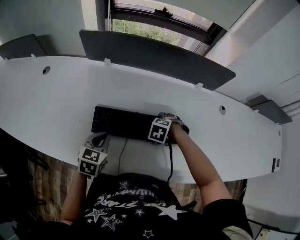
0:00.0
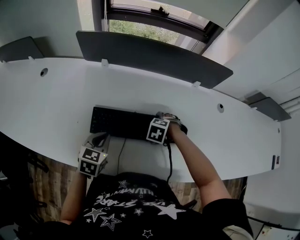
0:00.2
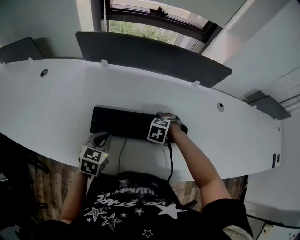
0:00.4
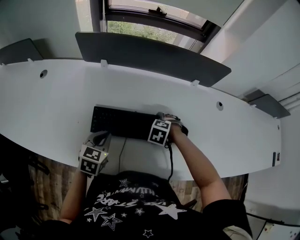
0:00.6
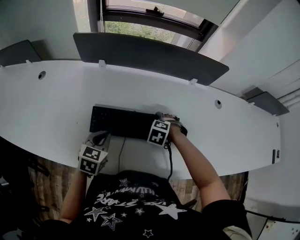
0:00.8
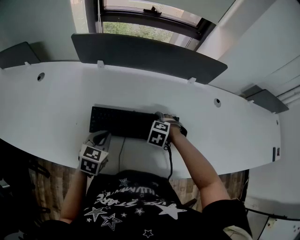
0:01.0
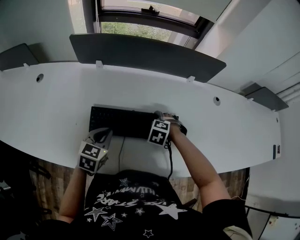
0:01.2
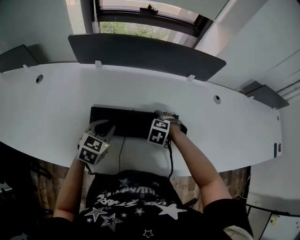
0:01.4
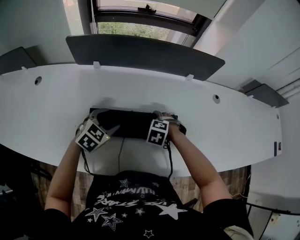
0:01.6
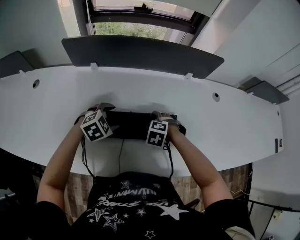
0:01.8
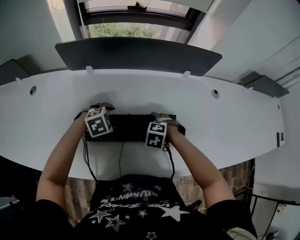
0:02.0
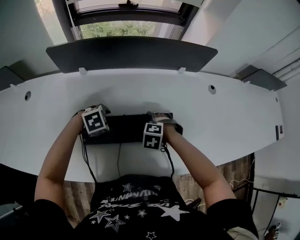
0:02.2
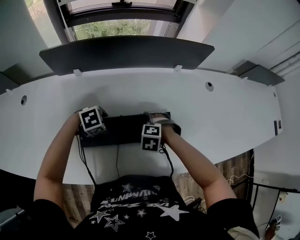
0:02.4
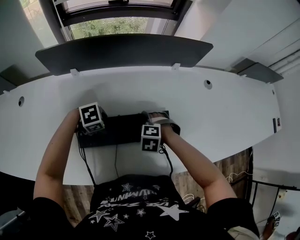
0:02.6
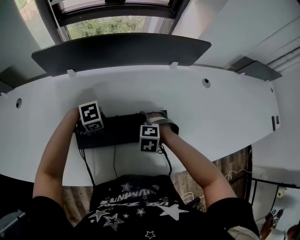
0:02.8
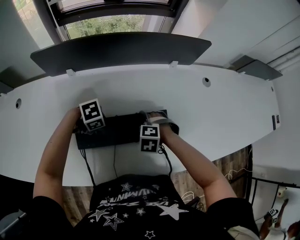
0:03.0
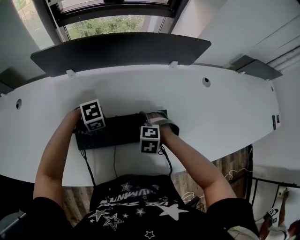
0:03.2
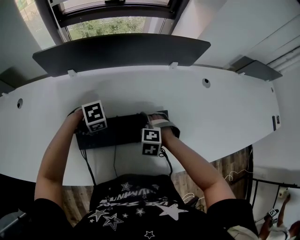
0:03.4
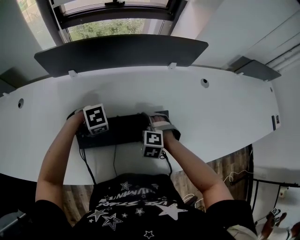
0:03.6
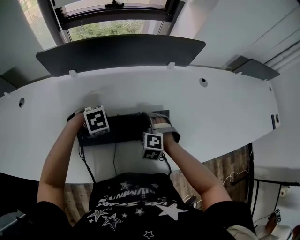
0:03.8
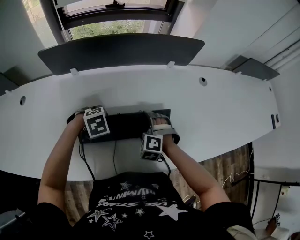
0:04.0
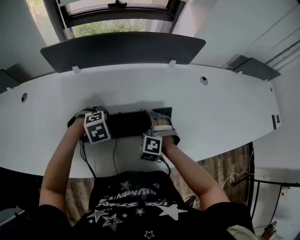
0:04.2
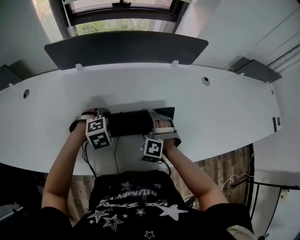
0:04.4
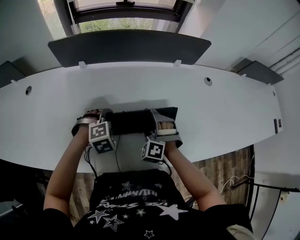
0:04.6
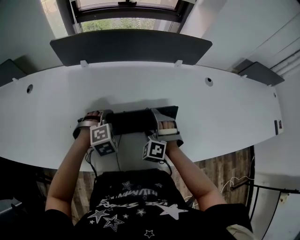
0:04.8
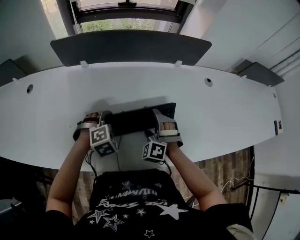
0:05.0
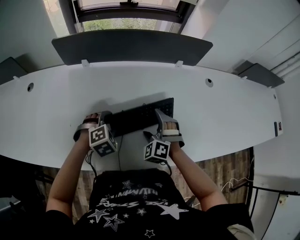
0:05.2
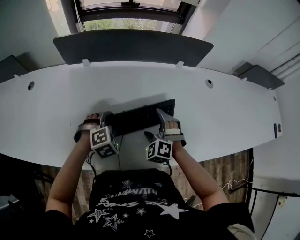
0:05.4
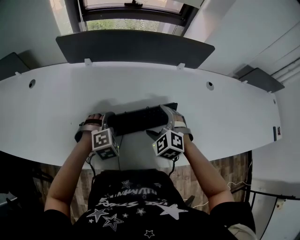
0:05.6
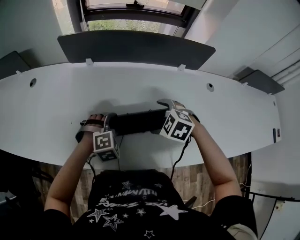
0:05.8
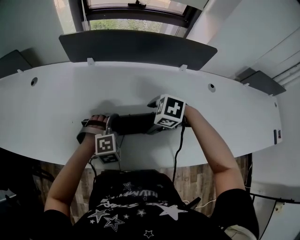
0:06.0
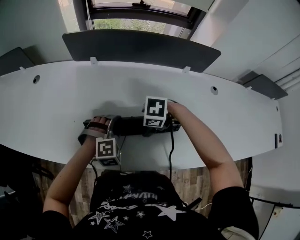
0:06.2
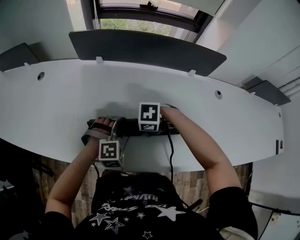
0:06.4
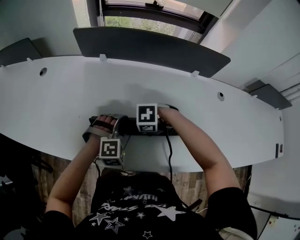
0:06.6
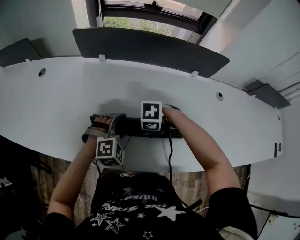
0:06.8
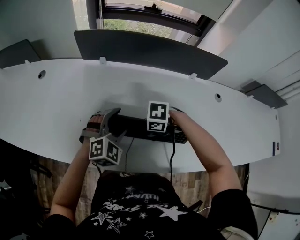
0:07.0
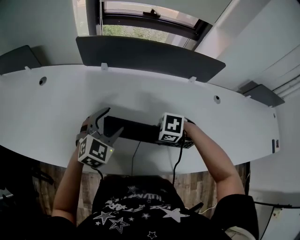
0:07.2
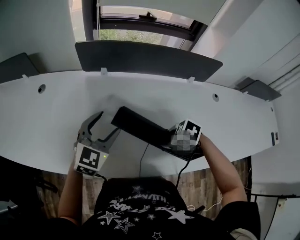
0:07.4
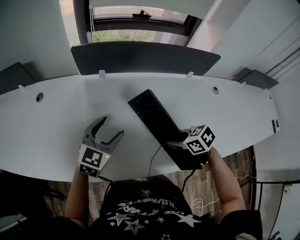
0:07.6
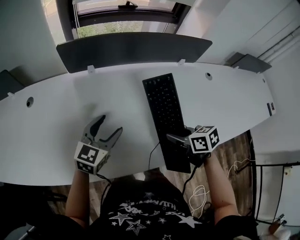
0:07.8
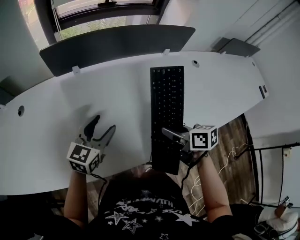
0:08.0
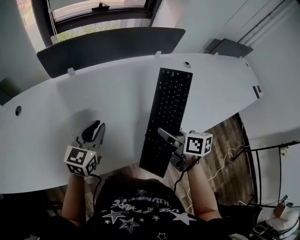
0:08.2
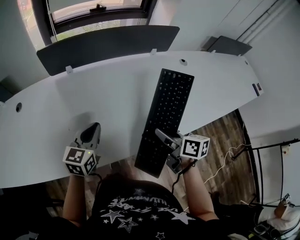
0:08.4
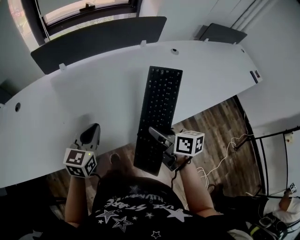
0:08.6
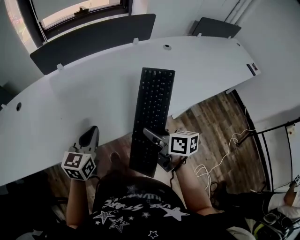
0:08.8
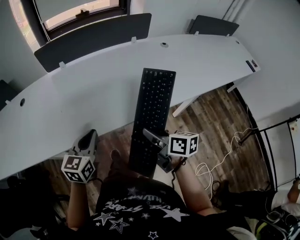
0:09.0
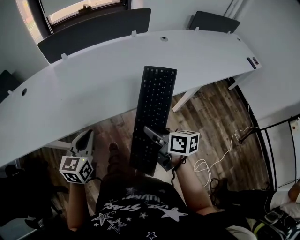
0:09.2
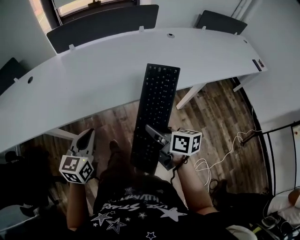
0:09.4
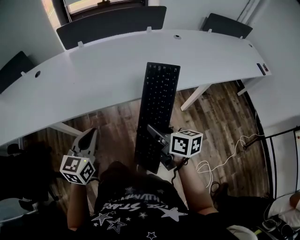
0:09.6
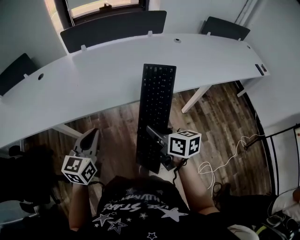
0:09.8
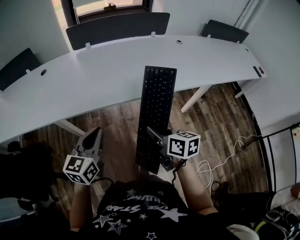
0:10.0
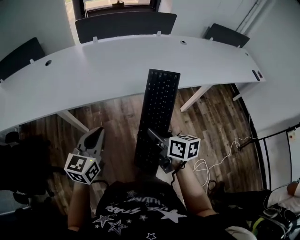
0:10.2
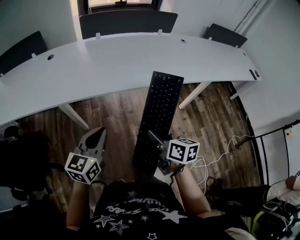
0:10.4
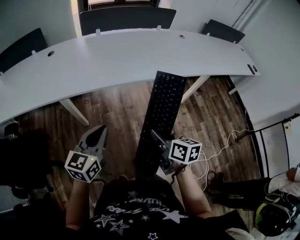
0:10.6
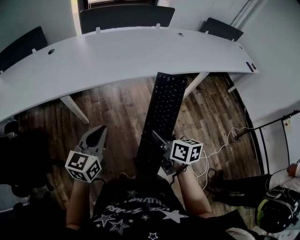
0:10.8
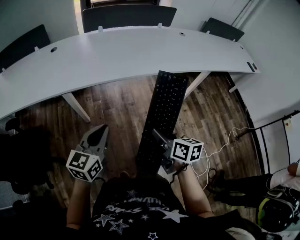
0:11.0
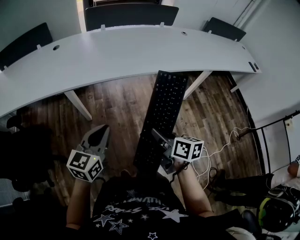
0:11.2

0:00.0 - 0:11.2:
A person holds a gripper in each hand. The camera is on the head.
0:00.0 - 0:01.6: The left gripper ends up approximately 10 cm from where it was, rotates about 30 degrees, and opens up.
0:01.6 - 0:03.2: The left gripper goes roughly 10 cm downward, and changes its angle by approximately 60 degrees.
0:03.2 - 0:04.8: The right gripper tilts its fingers roughly 40 degrees upward, while the left gripper travels upward by some 5 cm, and rotates approximately 50 degrees.
0:04.8 - 0:06.4: The right gripper moves about 10 cm upward and comes back, rotates approximately 70 degrees, and closes its fingers.
0:06.4 - 0:08.0: The left gripper ends up some 15 cm from where it was, and twists roughly 60 degrees counterclockwise, seen from behind. The right gripper is displaced upward by about 10 cm, and tilts its fingers approximately 40 degrees upward.
0:08.0 - 0:09.6: Both grippers travel together backward, roughly 20 cm. The left gripper closes up.
0:09.6 - 0:11.2: The left gripper moves upward, roughly 5 cm.

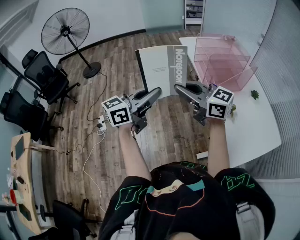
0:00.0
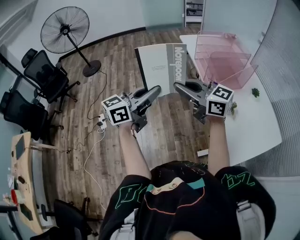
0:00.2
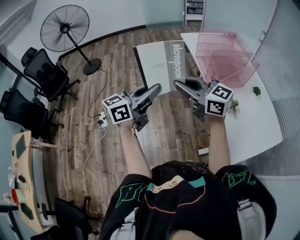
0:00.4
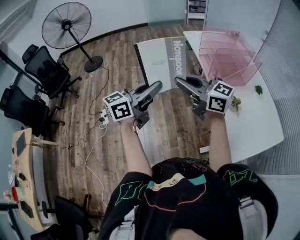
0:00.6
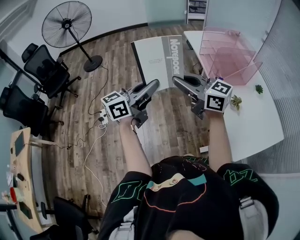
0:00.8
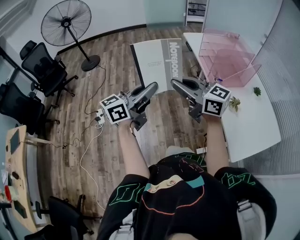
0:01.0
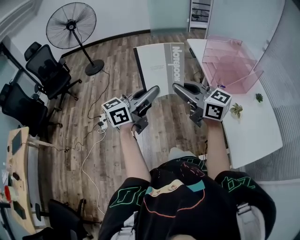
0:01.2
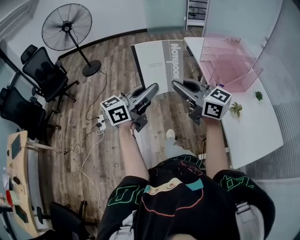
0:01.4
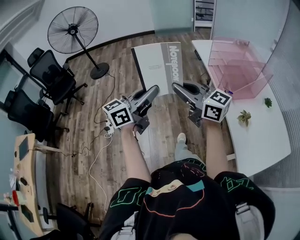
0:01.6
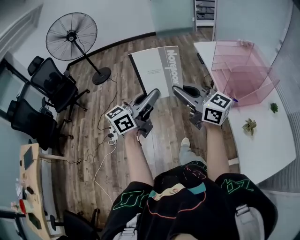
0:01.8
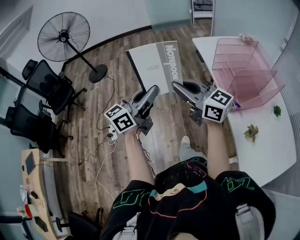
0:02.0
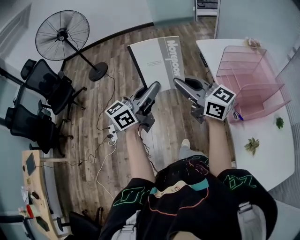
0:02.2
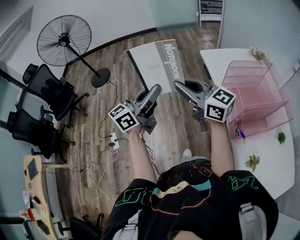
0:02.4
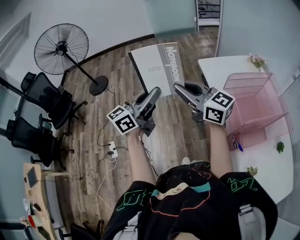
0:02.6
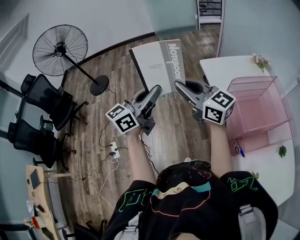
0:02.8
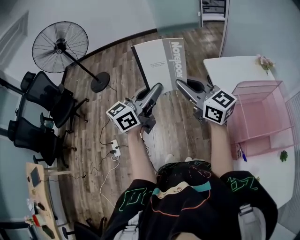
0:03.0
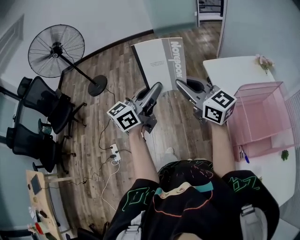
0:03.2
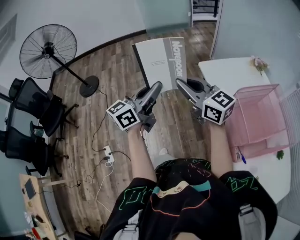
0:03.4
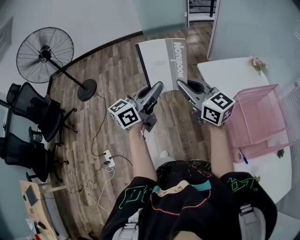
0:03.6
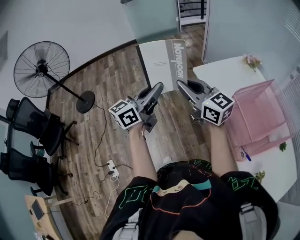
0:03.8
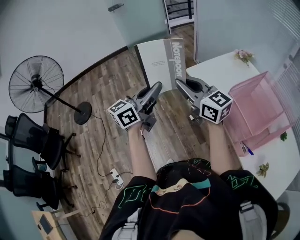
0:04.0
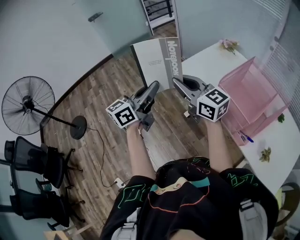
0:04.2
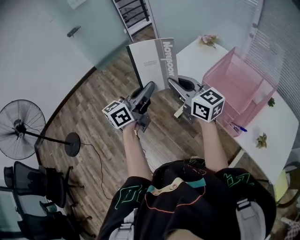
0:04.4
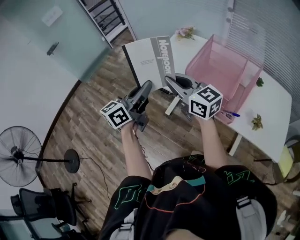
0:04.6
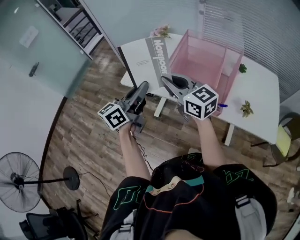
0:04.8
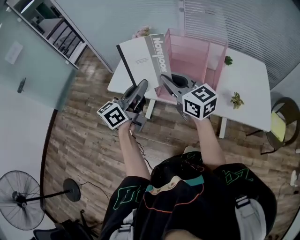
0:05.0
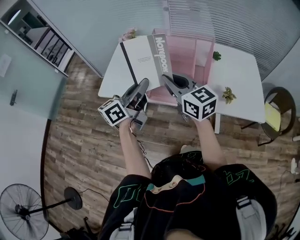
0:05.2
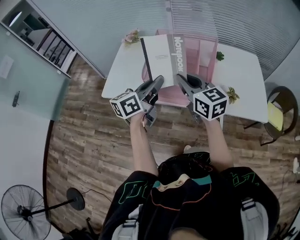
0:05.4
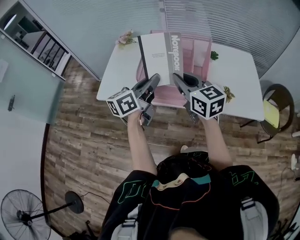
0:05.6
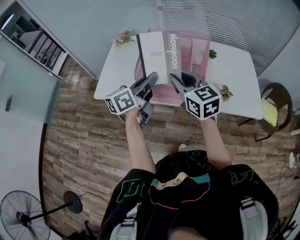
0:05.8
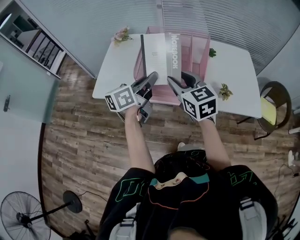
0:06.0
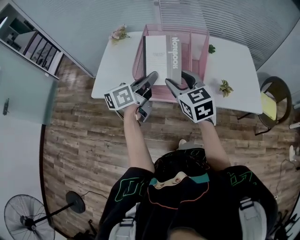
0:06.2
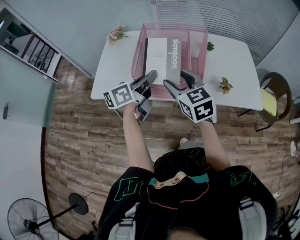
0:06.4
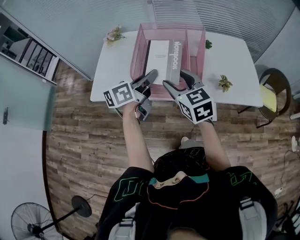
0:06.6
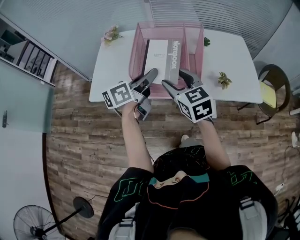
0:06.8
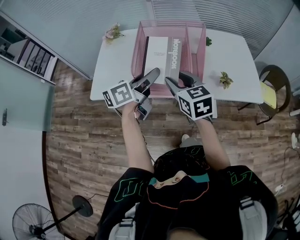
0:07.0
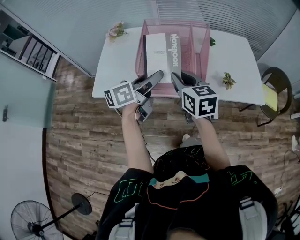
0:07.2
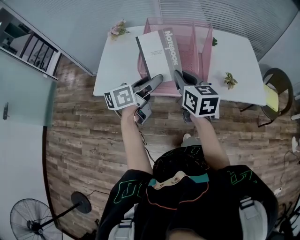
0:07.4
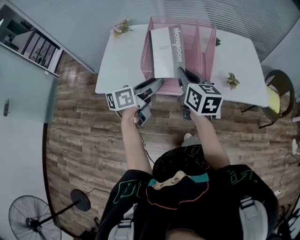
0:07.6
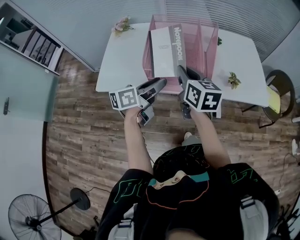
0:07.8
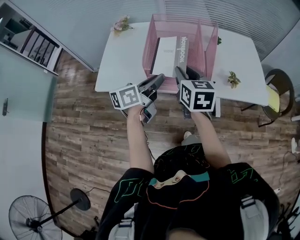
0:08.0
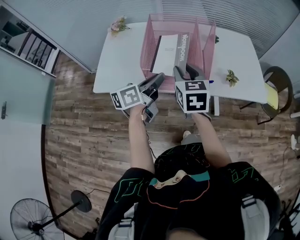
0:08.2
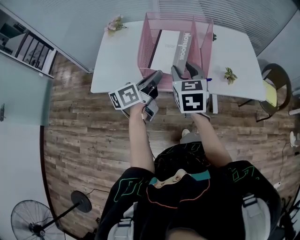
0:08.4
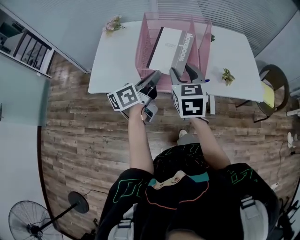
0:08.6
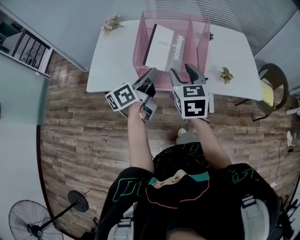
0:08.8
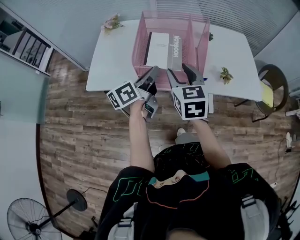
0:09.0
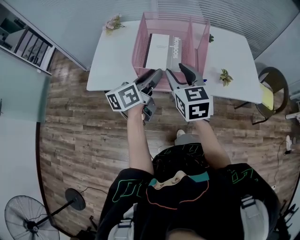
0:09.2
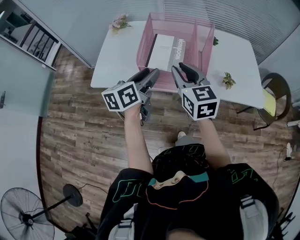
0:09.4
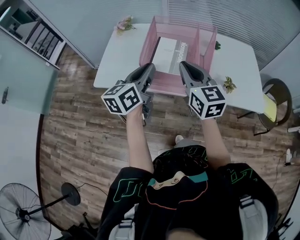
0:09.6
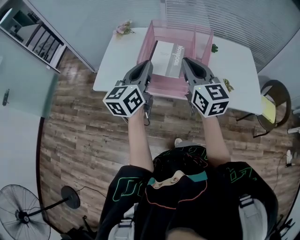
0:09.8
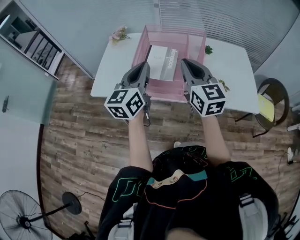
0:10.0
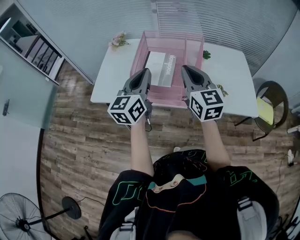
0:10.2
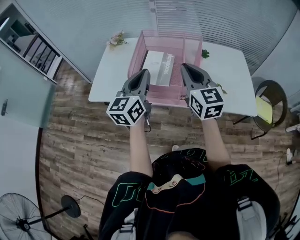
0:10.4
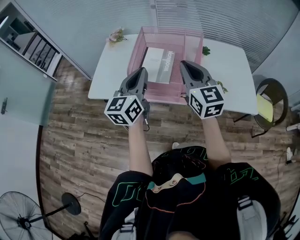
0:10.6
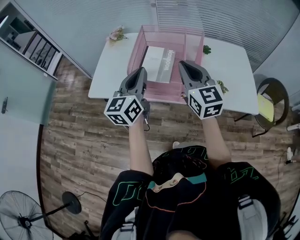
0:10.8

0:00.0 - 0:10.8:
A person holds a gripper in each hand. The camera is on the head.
0:00.0 - 0:01.6: The two grippers go some 10 cm to the left and forward.
0:01.6 - 0:03.0: The pair of grippers is taken forward, roughly 40 cm.
0:03.0 - 0:04.6: The left gripper shifts by some 15 cm, and swivels some 40 degrees; the right gripper moves roughly 15 cm, and turns by roughly 50 degrees.
0:04.6 - 0:06.2: The left gripper changes place by about 25 cm, and swivels some 40 degrees. The right gripper ends up some 20 cm from where it was, changes its angle by approximately 50 degrees, and opens.
0:06.2 - 0:07.8: The right gripper swivels some 30 degrees, and closes up. Meanwhile the left gripper moves downward, roughly 5 cm, and opens.
0:07.8 - 0:09.2: The left gripper closes and opens again, while the right gripper turns by some 20 degrees, and opens its fingers.
0:09.2 - 0:10.8: The left gripper is displaced upward by some 10 cm, turns by roughly 40 degrees, and closes its fingers. The right gripper shifts some 10 cm upward and to the right, and closes up.

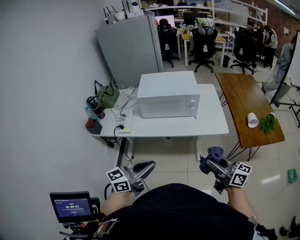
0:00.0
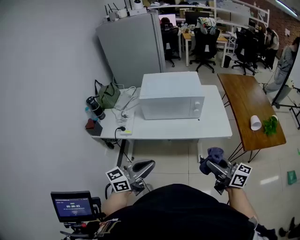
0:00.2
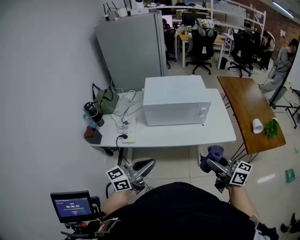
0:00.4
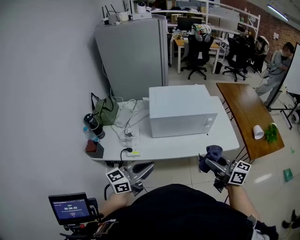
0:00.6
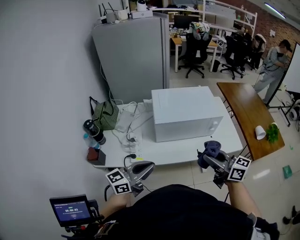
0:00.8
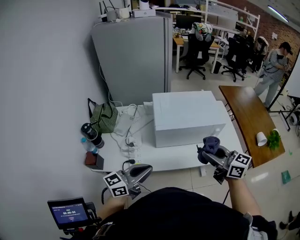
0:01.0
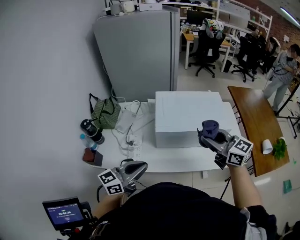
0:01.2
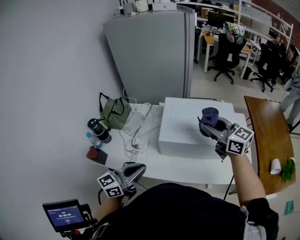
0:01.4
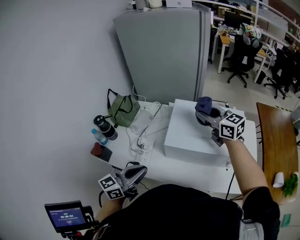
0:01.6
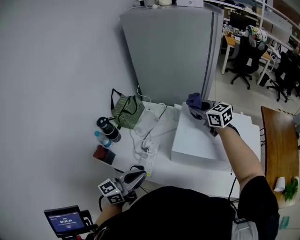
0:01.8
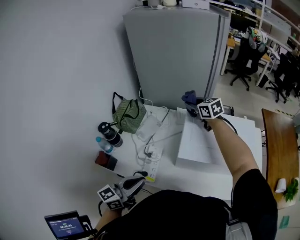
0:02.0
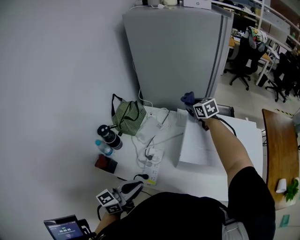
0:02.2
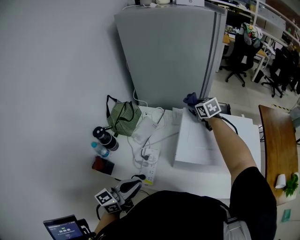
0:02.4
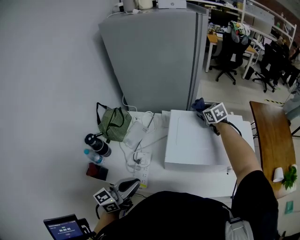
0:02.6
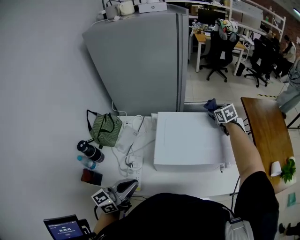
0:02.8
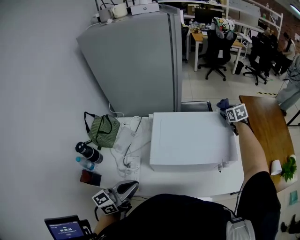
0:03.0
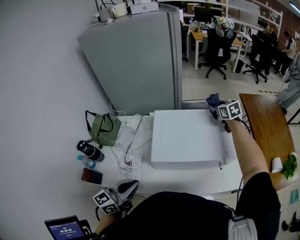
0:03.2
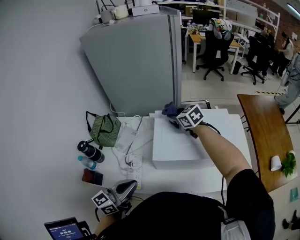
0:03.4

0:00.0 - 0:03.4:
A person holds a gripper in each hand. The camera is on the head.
0:00.0 - 0:01.6: The right gripper is displaced forward and to the left by about 60 cm, and changes its angle by approximately 30 degrees; the left gripper travels forward and to the left by roughly 40 cm.
0:01.6 - 0:03.4: The right gripper changes its angle by some 20 degrees.
